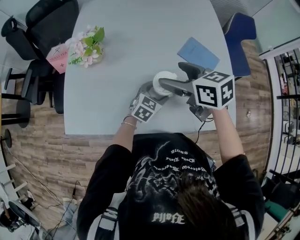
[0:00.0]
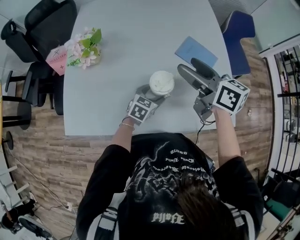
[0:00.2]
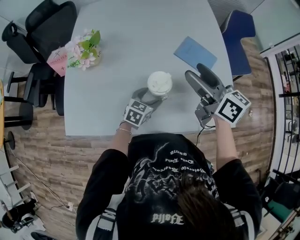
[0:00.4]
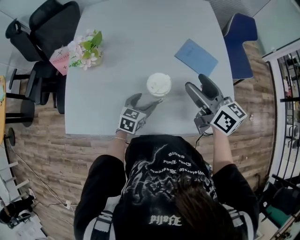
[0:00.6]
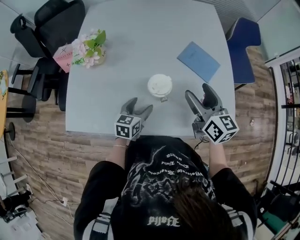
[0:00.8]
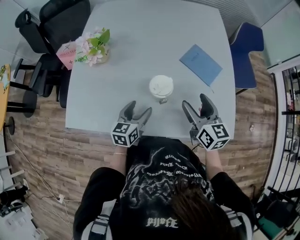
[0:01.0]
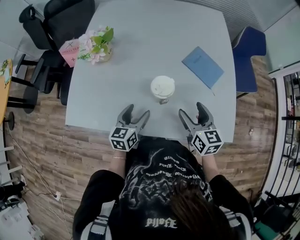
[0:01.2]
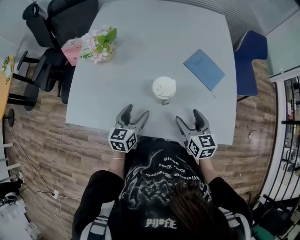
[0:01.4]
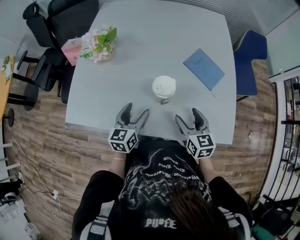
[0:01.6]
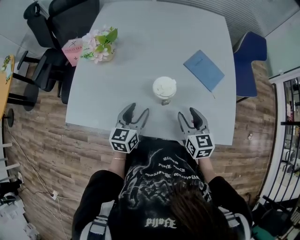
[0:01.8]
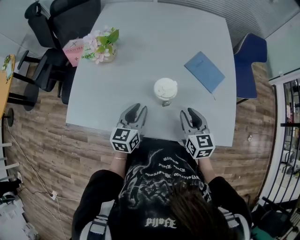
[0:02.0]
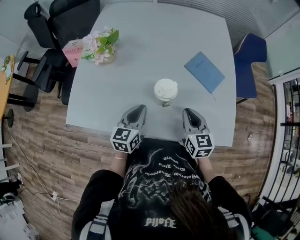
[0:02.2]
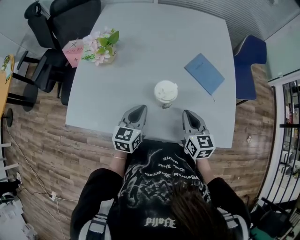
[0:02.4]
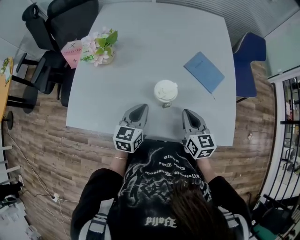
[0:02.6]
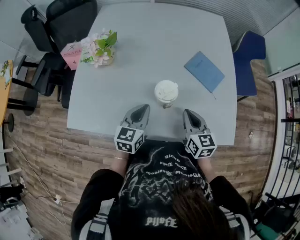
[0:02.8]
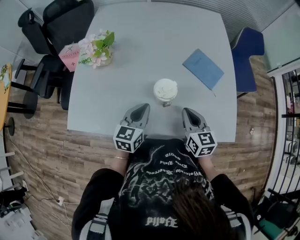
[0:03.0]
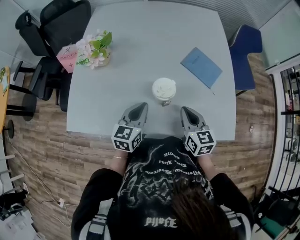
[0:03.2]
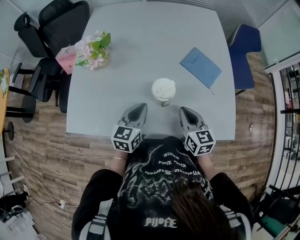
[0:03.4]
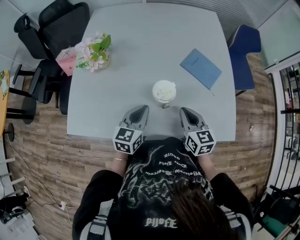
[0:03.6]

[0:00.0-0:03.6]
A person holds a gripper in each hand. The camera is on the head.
0:00.0 to 0:01.8: The left gripper shifts approximately 15 cm to the left, backward and upward, and swivels some 40 degrees, while the right gripper travels downward, backward and to the right by about 20 cm, swivels roughly 20 degrees, and closes its fingers.
0:01.8 to 0:03.6: The right gripper closes its fingers, while the left gripper closes its fingers.

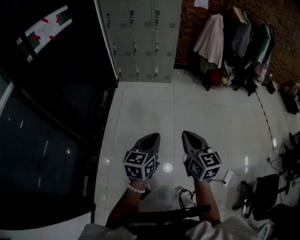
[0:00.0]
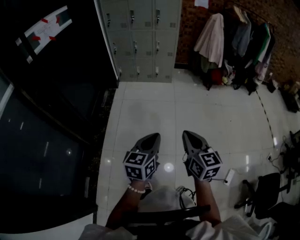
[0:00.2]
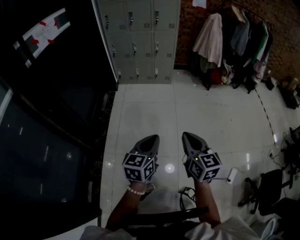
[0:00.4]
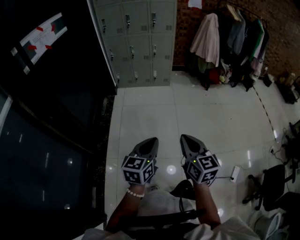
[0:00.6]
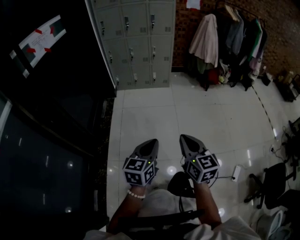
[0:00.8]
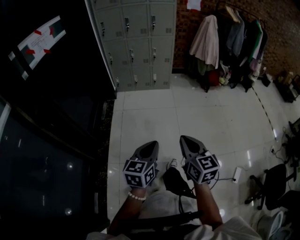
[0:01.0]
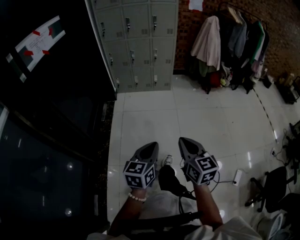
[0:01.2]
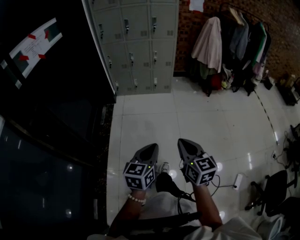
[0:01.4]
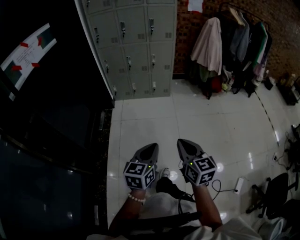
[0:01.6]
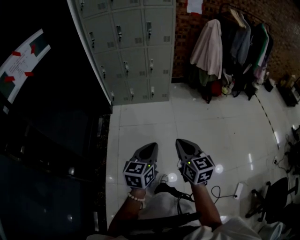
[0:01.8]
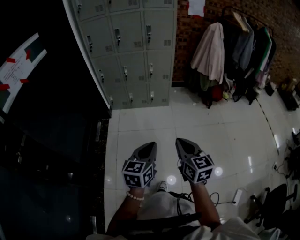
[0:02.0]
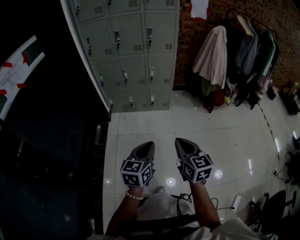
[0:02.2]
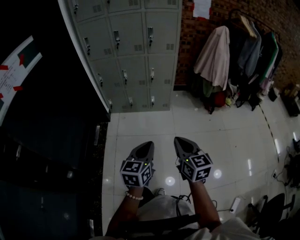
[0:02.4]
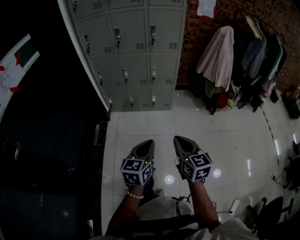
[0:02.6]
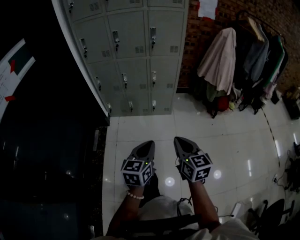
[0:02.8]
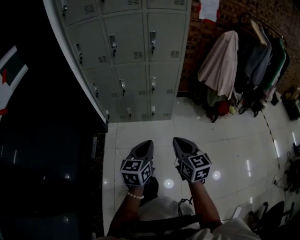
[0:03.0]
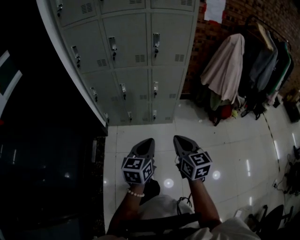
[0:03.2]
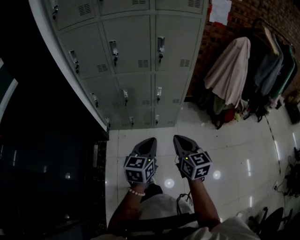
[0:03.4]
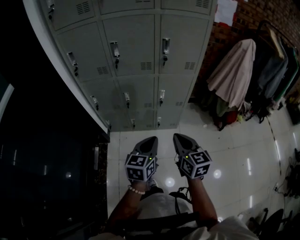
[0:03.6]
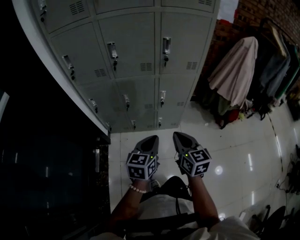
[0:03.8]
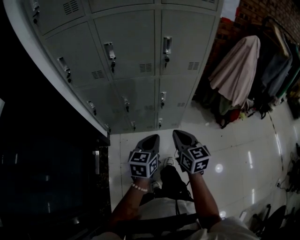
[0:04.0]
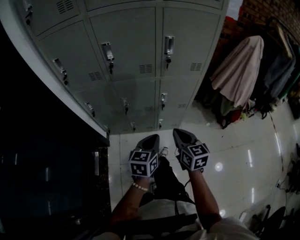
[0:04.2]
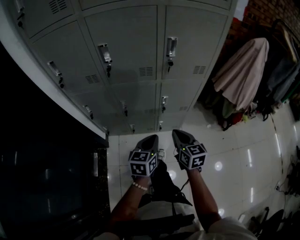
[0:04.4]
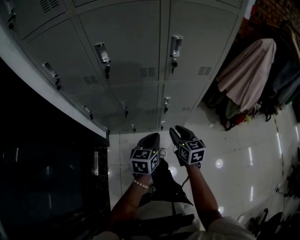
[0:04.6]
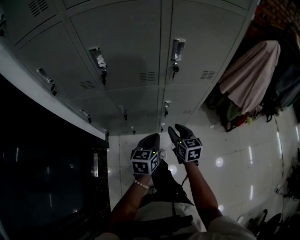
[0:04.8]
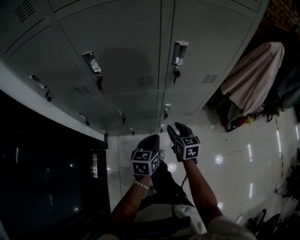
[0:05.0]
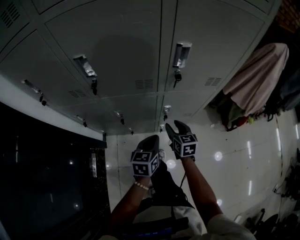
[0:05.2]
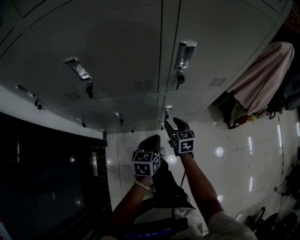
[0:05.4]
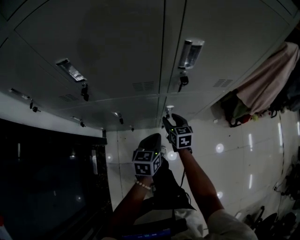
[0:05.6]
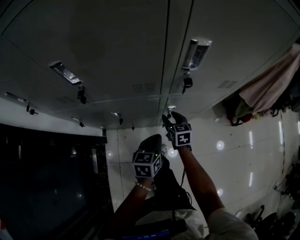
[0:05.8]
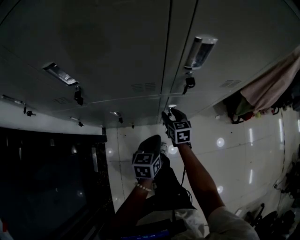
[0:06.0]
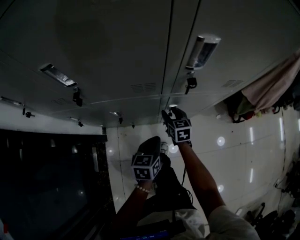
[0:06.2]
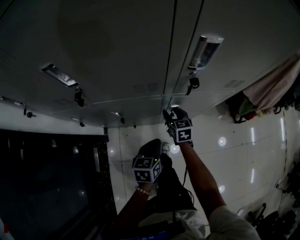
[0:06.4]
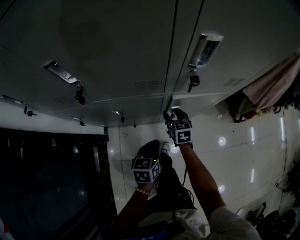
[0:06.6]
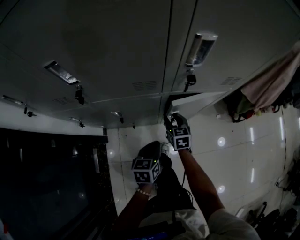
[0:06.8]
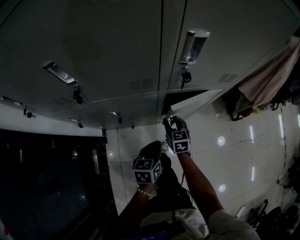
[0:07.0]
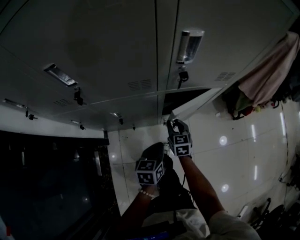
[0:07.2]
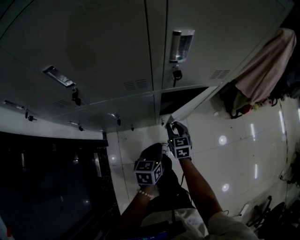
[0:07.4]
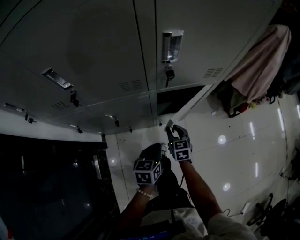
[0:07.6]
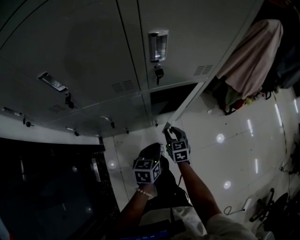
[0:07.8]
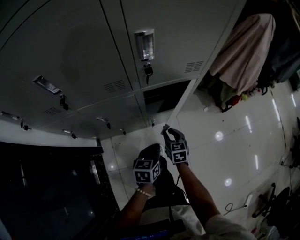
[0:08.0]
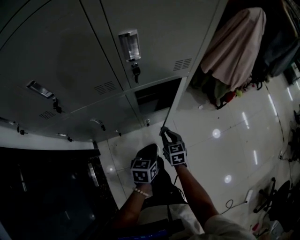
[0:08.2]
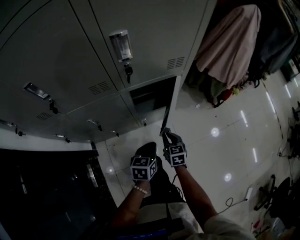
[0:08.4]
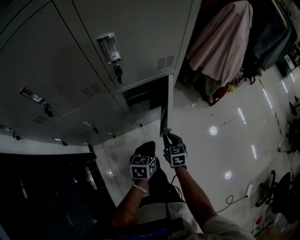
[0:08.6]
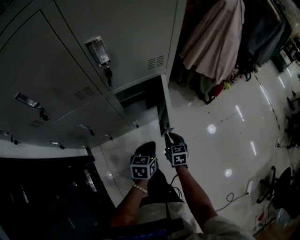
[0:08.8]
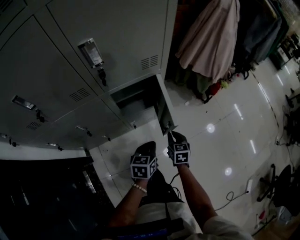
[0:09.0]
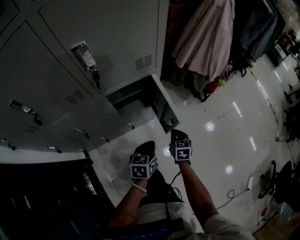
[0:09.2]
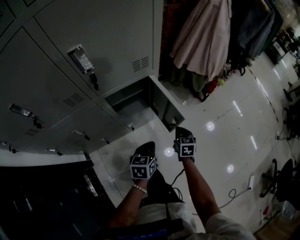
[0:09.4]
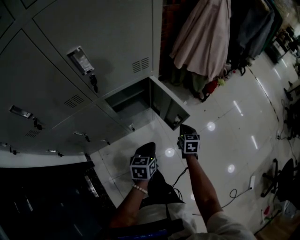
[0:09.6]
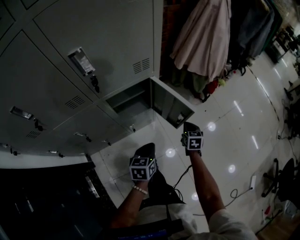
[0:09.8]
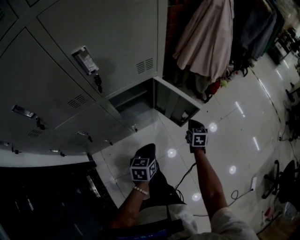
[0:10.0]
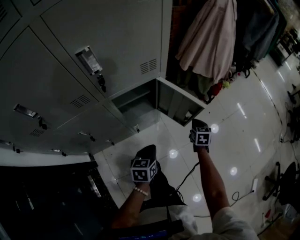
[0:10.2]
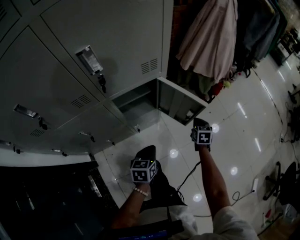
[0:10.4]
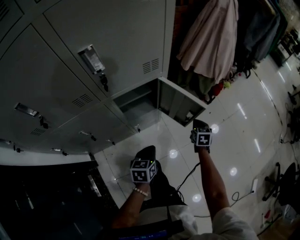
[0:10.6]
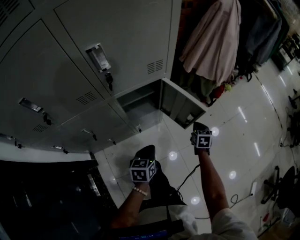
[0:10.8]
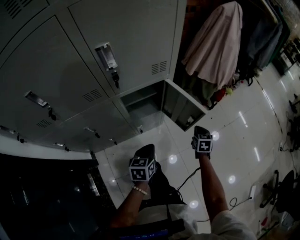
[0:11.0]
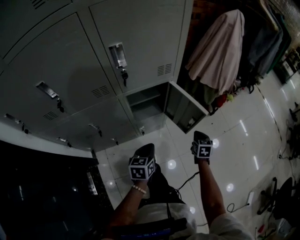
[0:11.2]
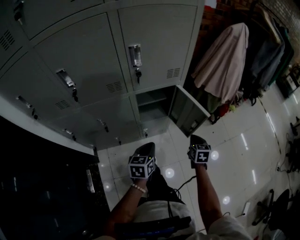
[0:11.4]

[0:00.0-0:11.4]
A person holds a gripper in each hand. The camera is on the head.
0:00.0 to 0:01.4: The two grippers go approximately 15 cm to the left and forward.
0:01.4 to 0:02.8: The pair of grippers is taken forward, some 40 cm.
0:02.8 to 0:04.2: Both grippers are carried forward, about 40 cm.
0:04.2 to 0:05.6: The two grippers go about 30 cm forward and downward. The right gripper opens up.
0:05.6 to 0:07.2: The right gripper closes, while the left gripper ends up about 5 cm from where it was.
0:07.2 to 0:08.6: The right gripper heads to the right and backward, covering roughly 20 cm, while the left gripper goes roughly 10 cm to the right.
0:08.6 to 0:10.0: The right gripper heads to the right and forward, covering approximately 20 cm, and turns by roughly 20 degrees.
0:10.0 to 0:11.4: The right gripper moves upward, backward and to the left, roughly 15 cm. The left gripper goes roughly 10 cm upward and to the left.

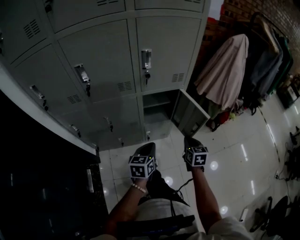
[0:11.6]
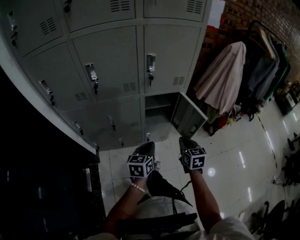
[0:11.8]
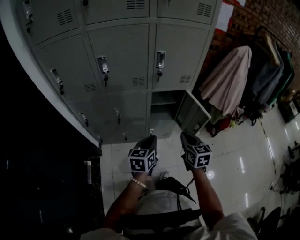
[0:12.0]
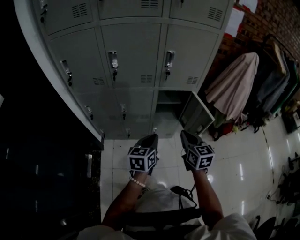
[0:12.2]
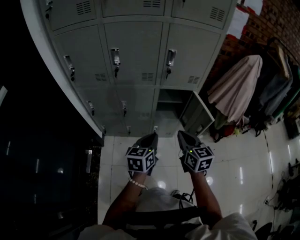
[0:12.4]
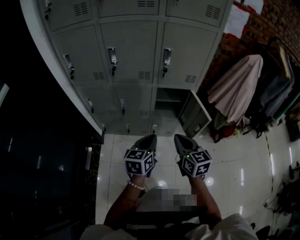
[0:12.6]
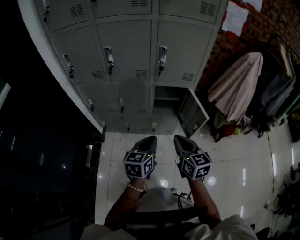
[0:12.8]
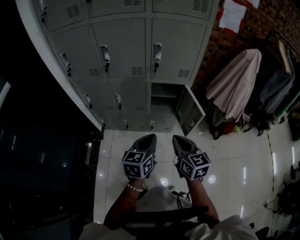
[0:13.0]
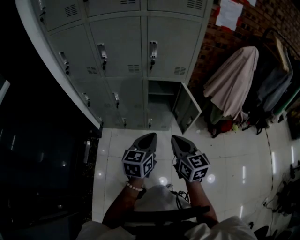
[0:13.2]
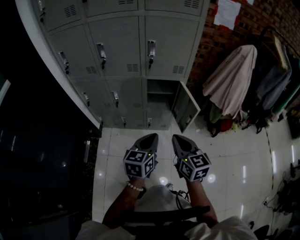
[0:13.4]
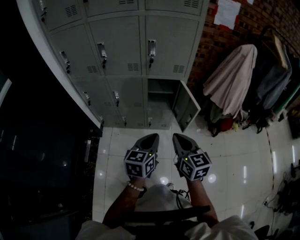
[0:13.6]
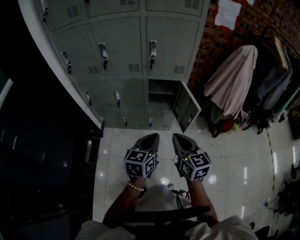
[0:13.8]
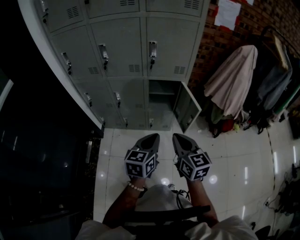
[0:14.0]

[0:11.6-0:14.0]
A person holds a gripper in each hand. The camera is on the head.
0:11.6 to 0:12.8: The grippers both shift upward and backward by some 20 cm. The right gripper swivels about 30 degrees.
0:12.8 to 0:14.0: The right gripper heads backward, covering about 5 cm, while the left gripper is displaced to the right and backward by about 10 cm.

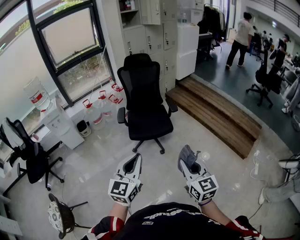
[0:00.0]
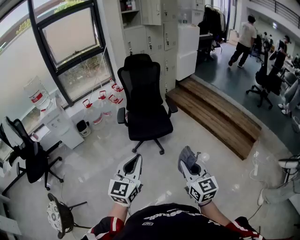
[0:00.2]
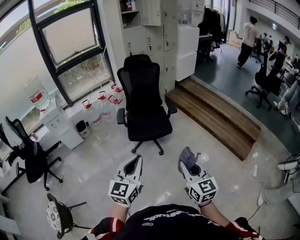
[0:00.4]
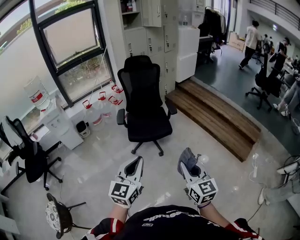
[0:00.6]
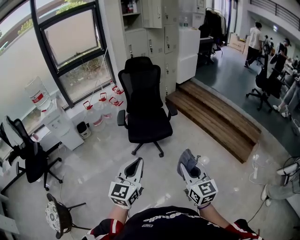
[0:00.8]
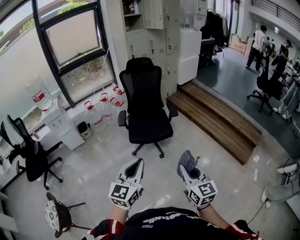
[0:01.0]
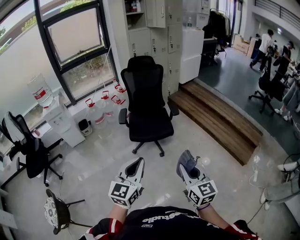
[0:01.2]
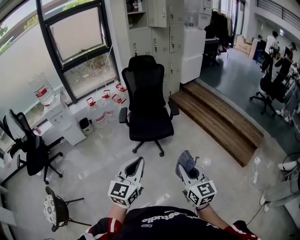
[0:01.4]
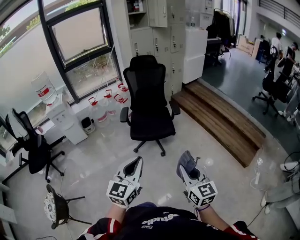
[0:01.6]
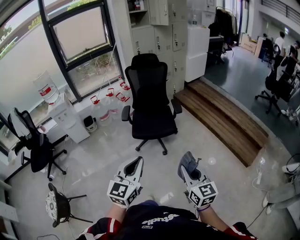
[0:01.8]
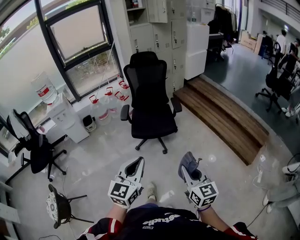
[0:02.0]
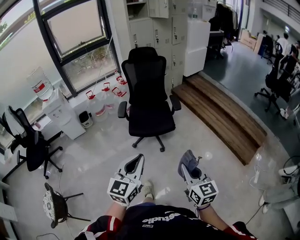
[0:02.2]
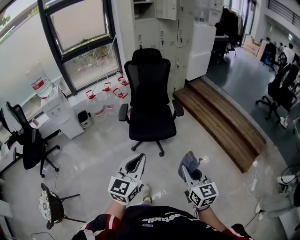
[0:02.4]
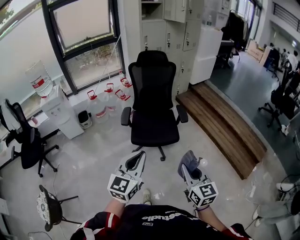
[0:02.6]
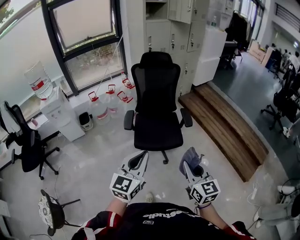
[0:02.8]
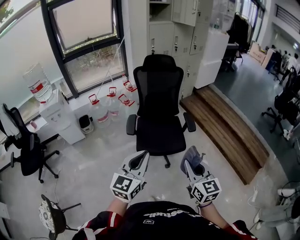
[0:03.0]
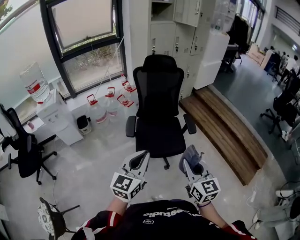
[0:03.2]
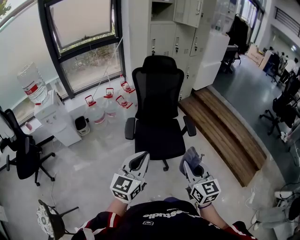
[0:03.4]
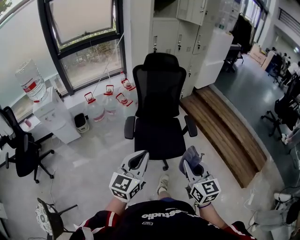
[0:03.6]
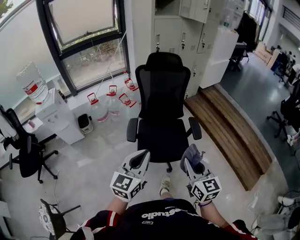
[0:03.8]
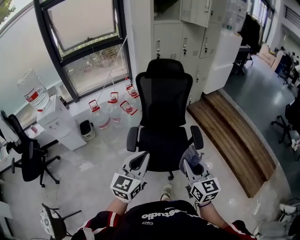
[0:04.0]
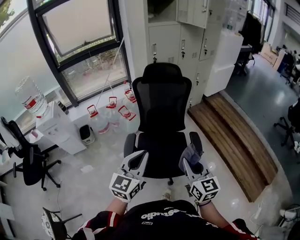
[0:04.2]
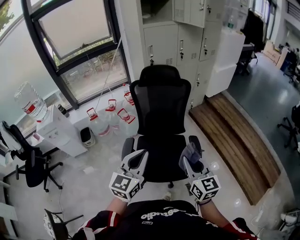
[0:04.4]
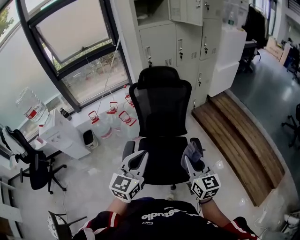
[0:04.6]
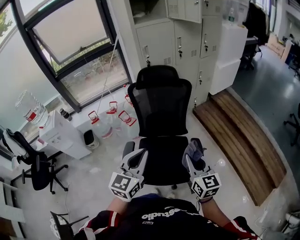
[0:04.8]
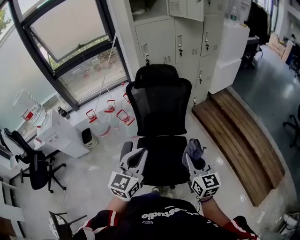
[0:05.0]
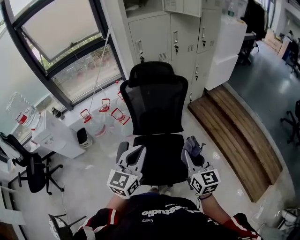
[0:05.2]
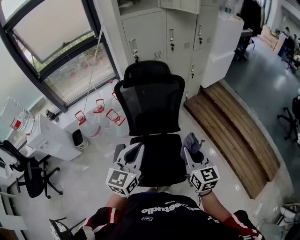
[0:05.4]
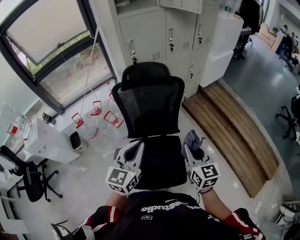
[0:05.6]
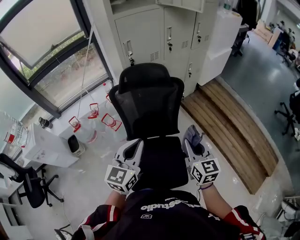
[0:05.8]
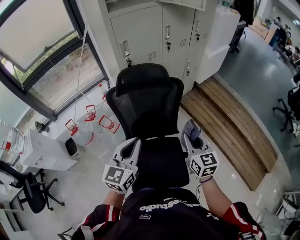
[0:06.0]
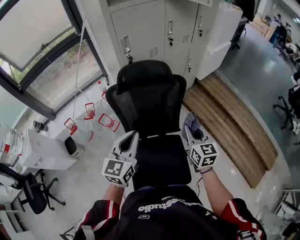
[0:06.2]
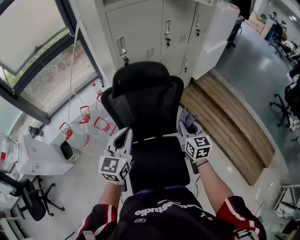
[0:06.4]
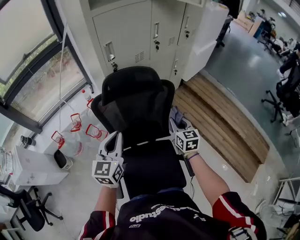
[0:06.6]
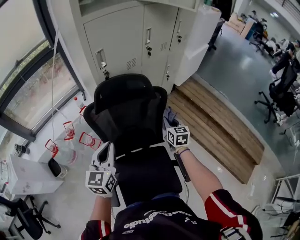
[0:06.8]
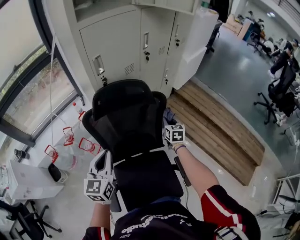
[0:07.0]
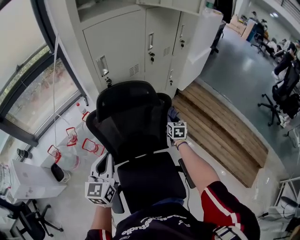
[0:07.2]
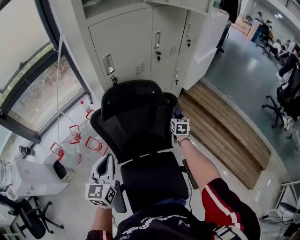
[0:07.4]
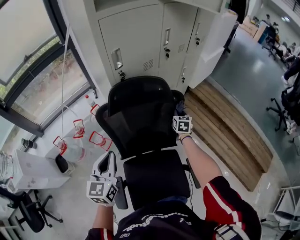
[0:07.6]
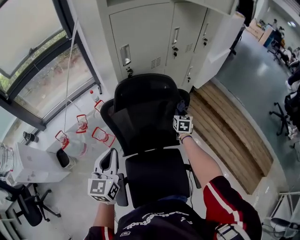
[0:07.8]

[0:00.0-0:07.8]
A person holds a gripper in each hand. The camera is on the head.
0:00.0 to 0:01.6: The grippers both shift to the right by some 5 cm.
0:01.6 to 0:03.2: The grippers both shift forward and to the left by some 40 cm.
0:03.2 to 0:04.6: Both grippers move forward, some 35 cm.
0:04.6 to 0:06.2: Both grippers move forward, approximately 35 cm.
0:06.2 to 0:07.8: The left gripper moves to the left, forward and downward, roughly 15 cm, while the right gripper is displaced forward and downward by some 35 cm, and turns by approximately 20 degrees.
